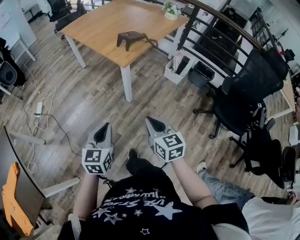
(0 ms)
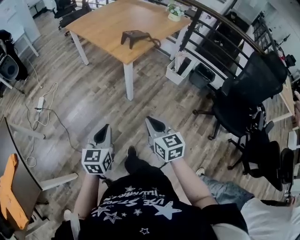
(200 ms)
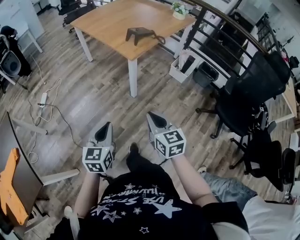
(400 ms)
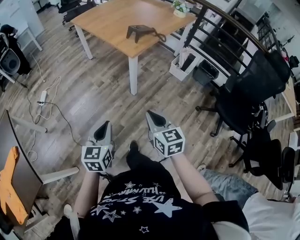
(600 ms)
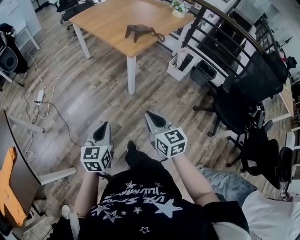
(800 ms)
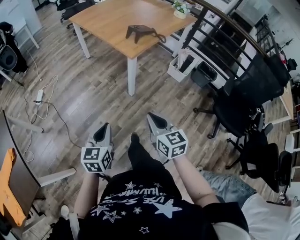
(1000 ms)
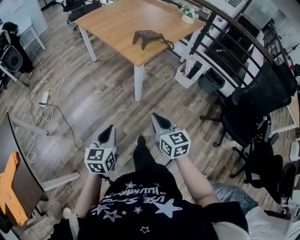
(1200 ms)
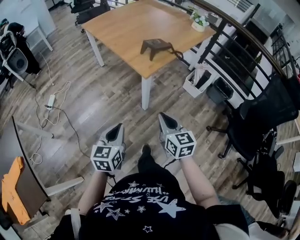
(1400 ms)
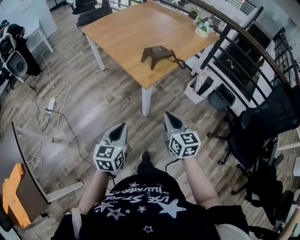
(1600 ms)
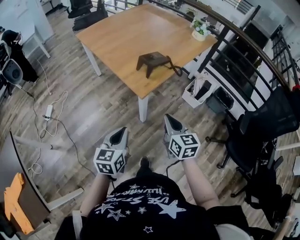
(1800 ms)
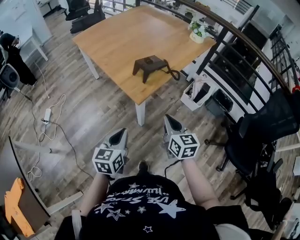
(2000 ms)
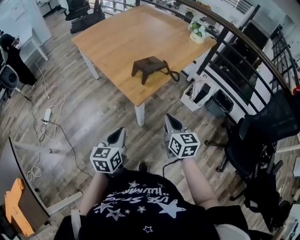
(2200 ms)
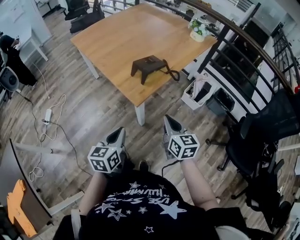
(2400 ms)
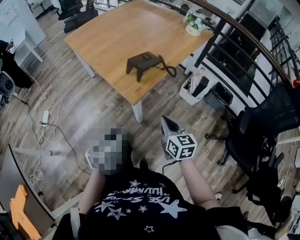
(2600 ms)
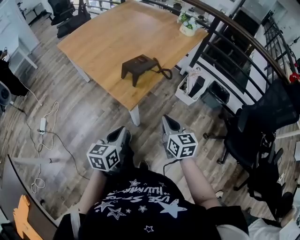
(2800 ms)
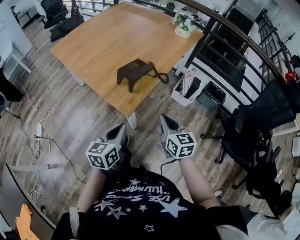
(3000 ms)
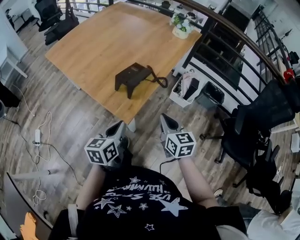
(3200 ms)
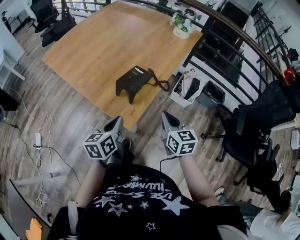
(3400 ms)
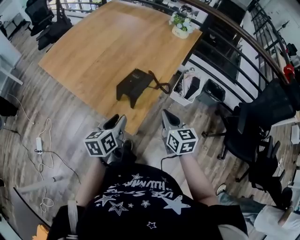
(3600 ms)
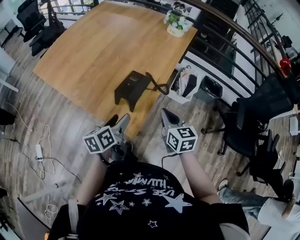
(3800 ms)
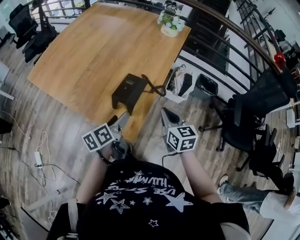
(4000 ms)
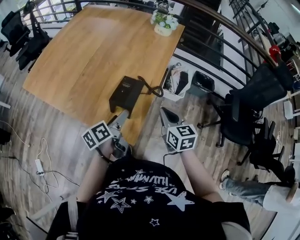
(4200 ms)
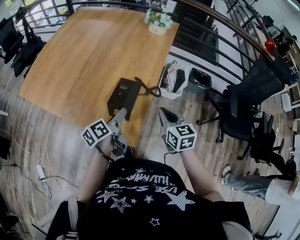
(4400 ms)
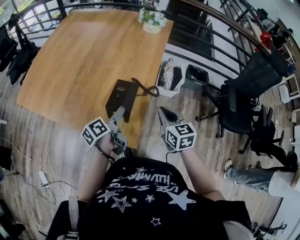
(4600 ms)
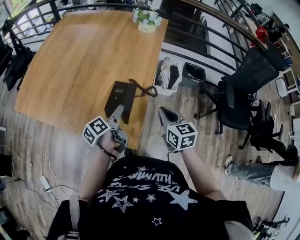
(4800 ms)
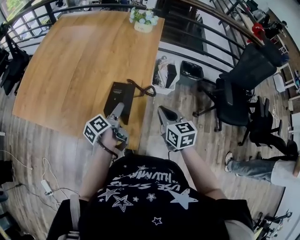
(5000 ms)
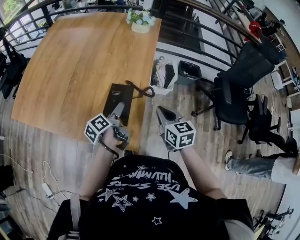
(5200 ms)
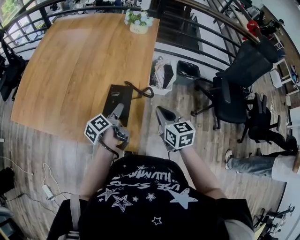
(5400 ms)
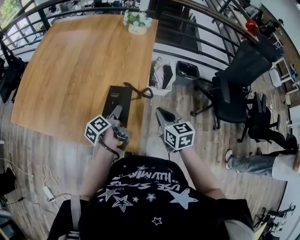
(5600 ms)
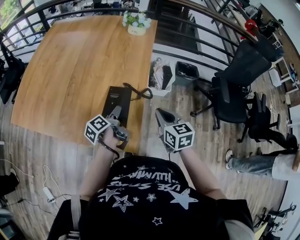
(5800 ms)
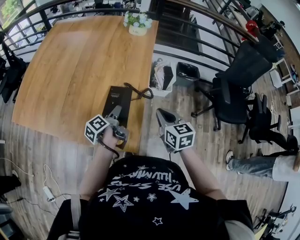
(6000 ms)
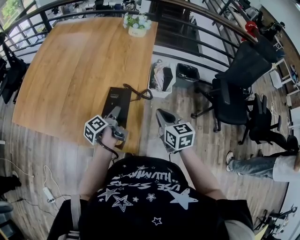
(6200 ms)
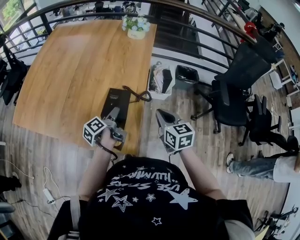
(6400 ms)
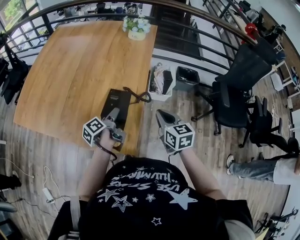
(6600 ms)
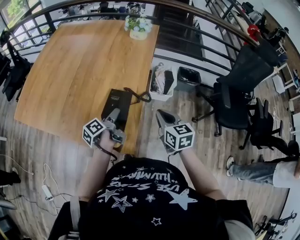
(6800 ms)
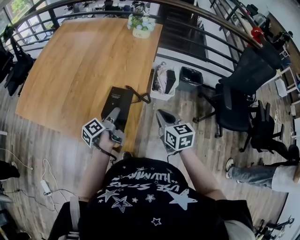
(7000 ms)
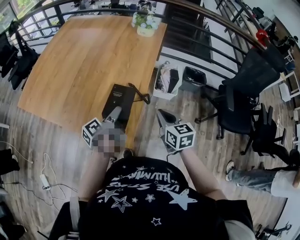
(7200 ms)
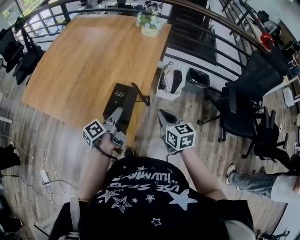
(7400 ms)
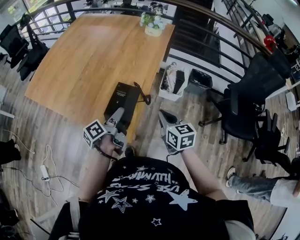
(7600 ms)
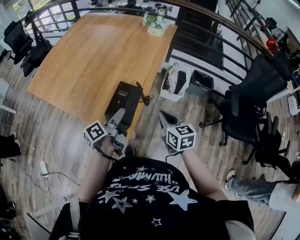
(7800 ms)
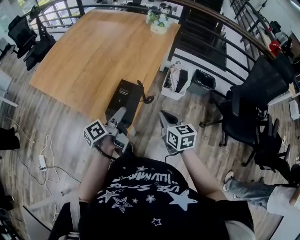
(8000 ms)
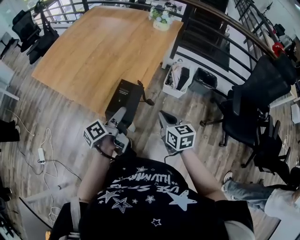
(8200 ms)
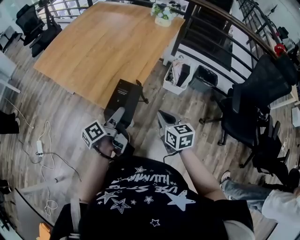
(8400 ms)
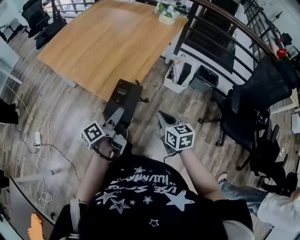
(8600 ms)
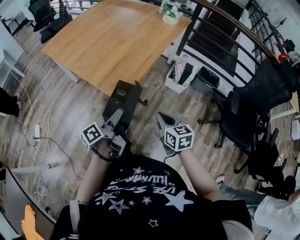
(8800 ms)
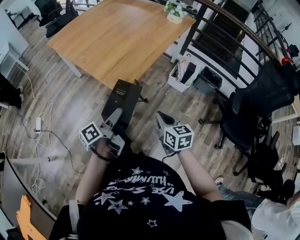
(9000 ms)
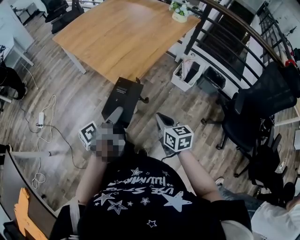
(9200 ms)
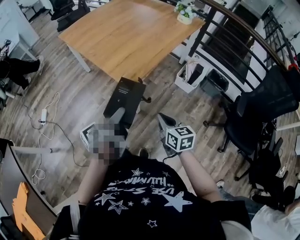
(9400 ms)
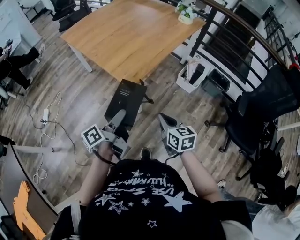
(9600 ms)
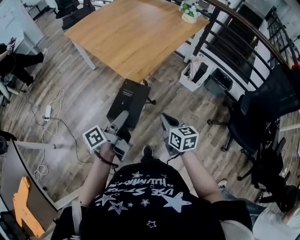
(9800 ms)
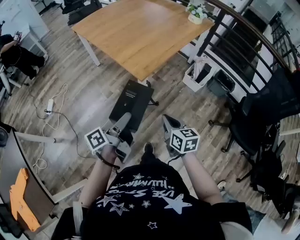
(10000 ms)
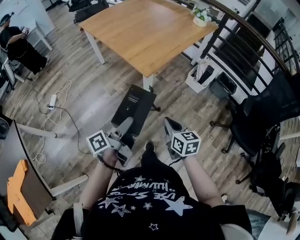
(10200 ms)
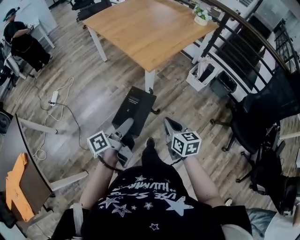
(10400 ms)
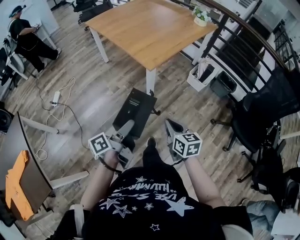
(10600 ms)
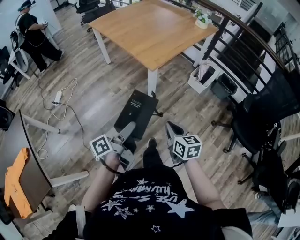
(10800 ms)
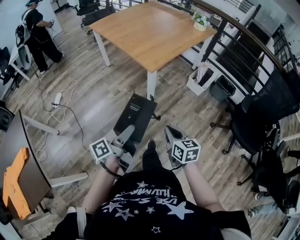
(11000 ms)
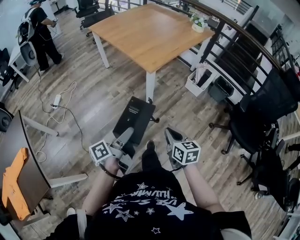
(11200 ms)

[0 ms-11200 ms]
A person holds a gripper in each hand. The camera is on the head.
0 ms to 1600 ms: The grippers both shift forward by about 20 cm.
1600 ms to 3200 ms: Both grippers travel together forward, approximately 25 cm. The left gripper swivels about 20 degrees.
3200 ms to 4800 ms: The right gripper goes some 10 cm forward, while the left gripper goes approximately 20 cm forward, twists approximately 40 degrees counterclockwise, seen from behind, and opens its fingers.
4800 ms to 6400 ms: The left gripper closes.
6400 ms to 8000 ms: The left gripper travels backward and upward by roughly 15 cm, while the right gripper goes approximately 5 cm backward.
8000 ms to 9600 ms: Both grippers move backward, approximately 25 cm.
9600 ms to 11200 ms: The two grippers go about 25 cm backward.

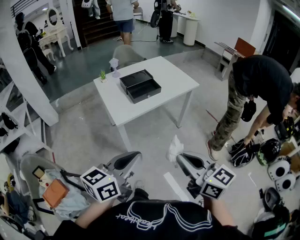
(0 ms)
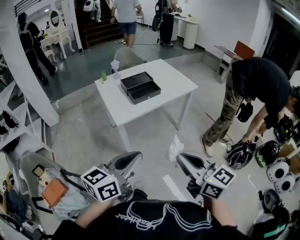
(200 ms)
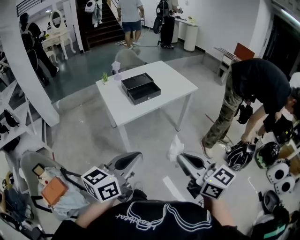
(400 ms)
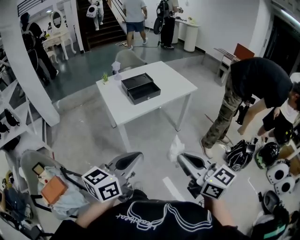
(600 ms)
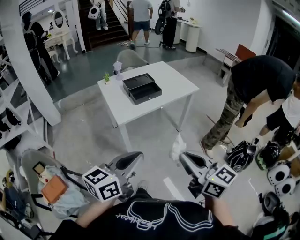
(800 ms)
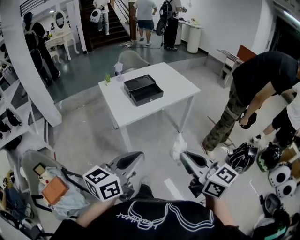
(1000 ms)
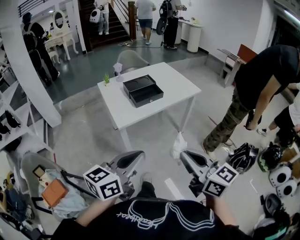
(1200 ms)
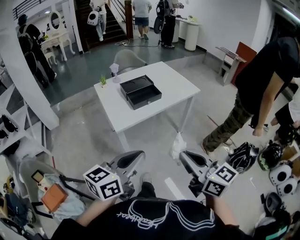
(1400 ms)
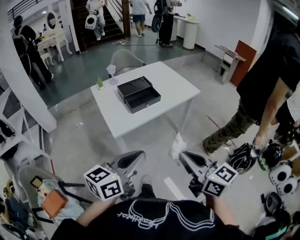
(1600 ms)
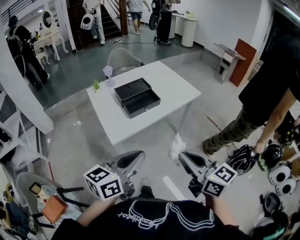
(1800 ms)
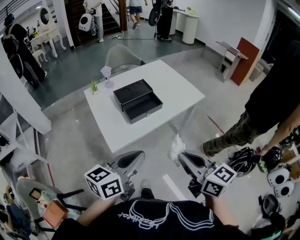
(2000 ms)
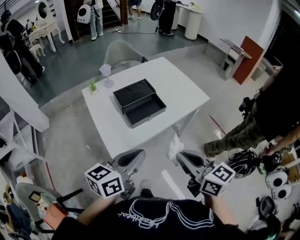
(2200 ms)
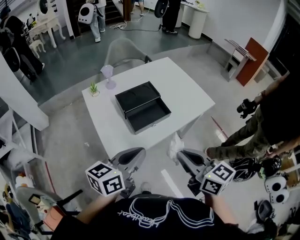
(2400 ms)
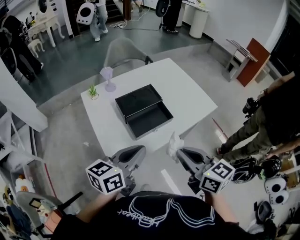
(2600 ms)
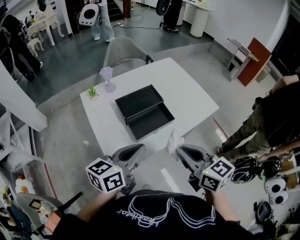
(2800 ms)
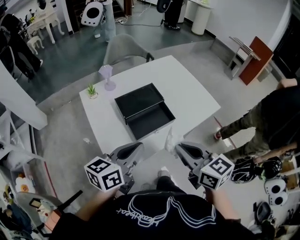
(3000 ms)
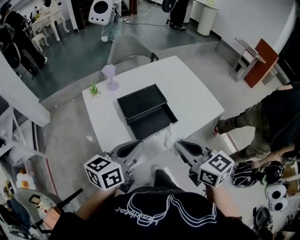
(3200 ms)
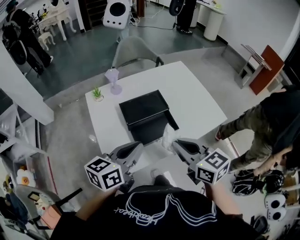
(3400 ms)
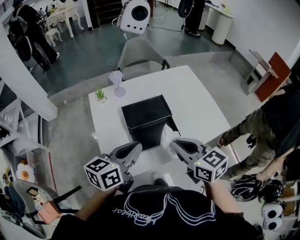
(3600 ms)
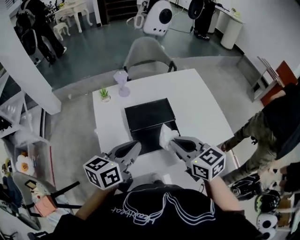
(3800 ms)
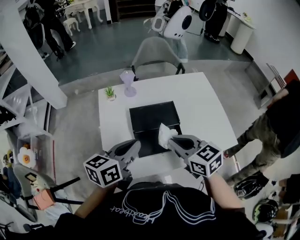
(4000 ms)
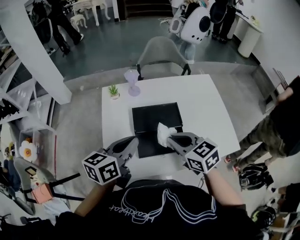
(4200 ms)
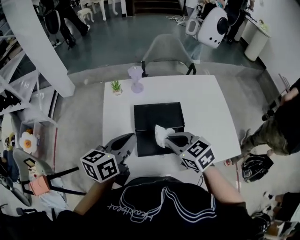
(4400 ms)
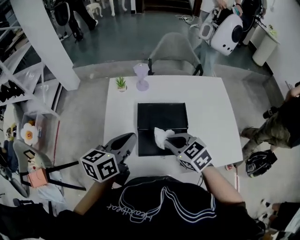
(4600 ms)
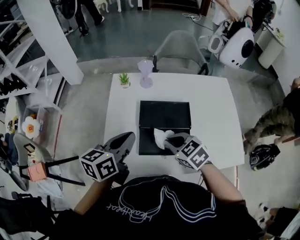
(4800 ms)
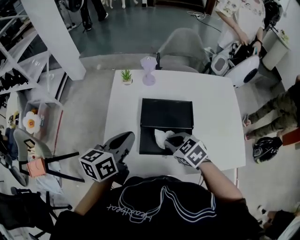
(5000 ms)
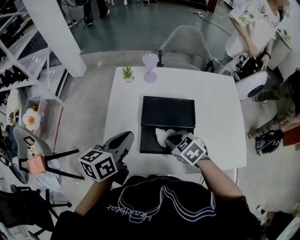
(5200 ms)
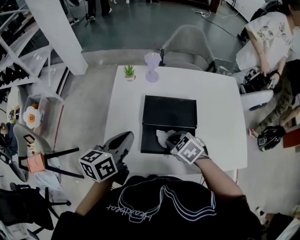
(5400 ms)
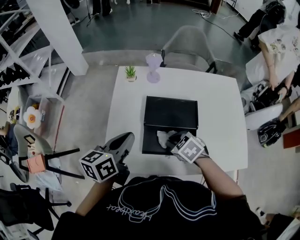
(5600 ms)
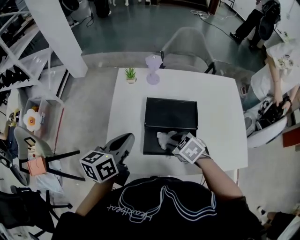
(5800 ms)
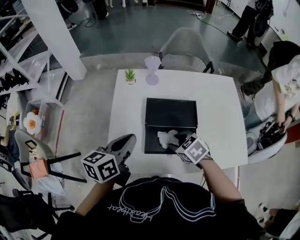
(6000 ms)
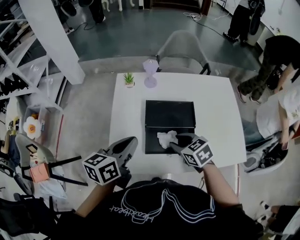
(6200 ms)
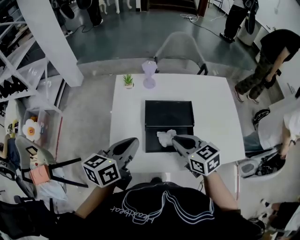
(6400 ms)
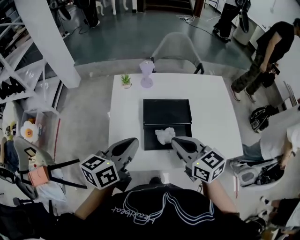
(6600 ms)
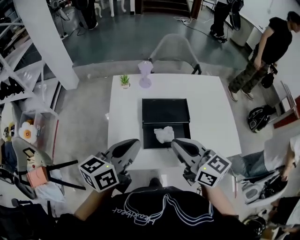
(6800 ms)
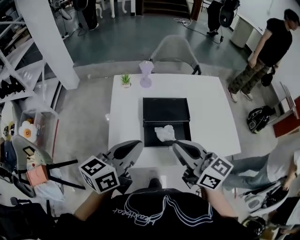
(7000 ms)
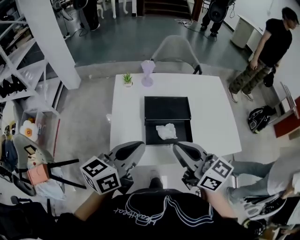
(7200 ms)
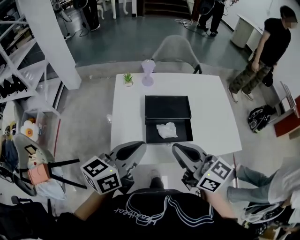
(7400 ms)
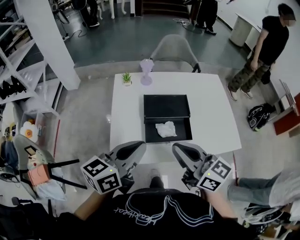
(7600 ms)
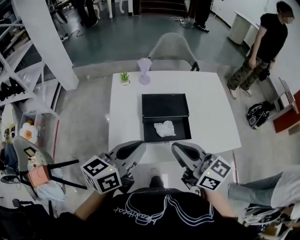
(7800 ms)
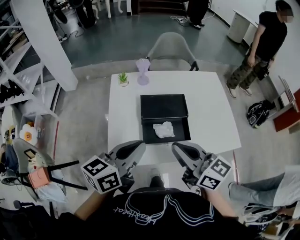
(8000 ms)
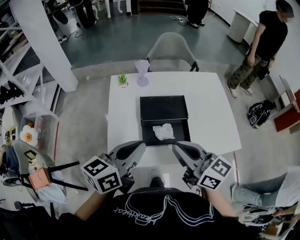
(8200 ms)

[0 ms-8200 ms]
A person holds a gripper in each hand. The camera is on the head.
0 ms to 1600 ms: Both grippers travel together forward, about 5 cm.
1600 ms to 3200 ms: Both grippers travel together forward, roughly 35 cm.
3200 ms to 5000 ms: The right gripper is displaced downward by roughly 20 cm, and angles its fingers downward, by approximately 30 degrees. Meanwhile the left gripper shifts by about 15 cm, and rotates some 40 degrees.
5000 ms to 6600 ms: The left gripper changes place by roughly 5 cm, while the right gripper heads upward, covering approximately 15 cm, angles its fingers upward, by about 30 degrees, and opens and closes again.
6600 ms to 8200 ms: The left gripper changes place by some 5 cm. The right gripper shifts some 10 cm backward and upward.

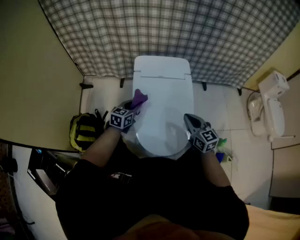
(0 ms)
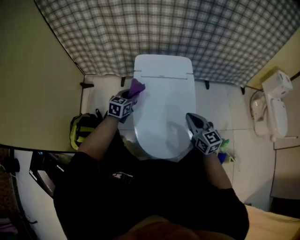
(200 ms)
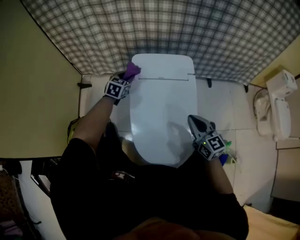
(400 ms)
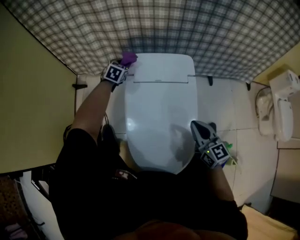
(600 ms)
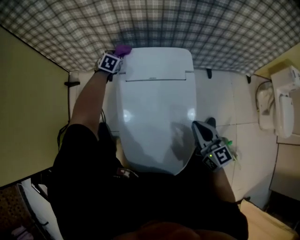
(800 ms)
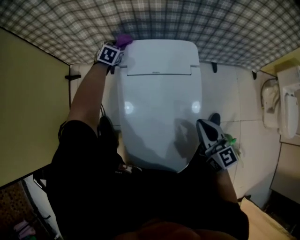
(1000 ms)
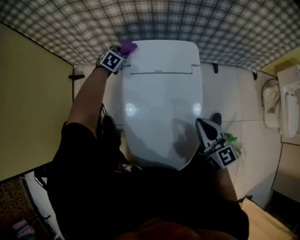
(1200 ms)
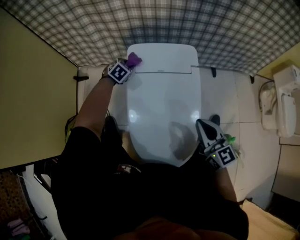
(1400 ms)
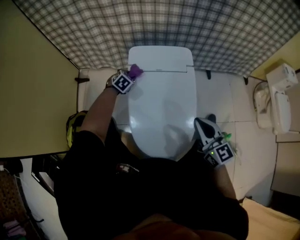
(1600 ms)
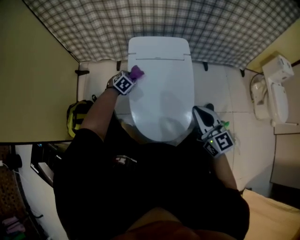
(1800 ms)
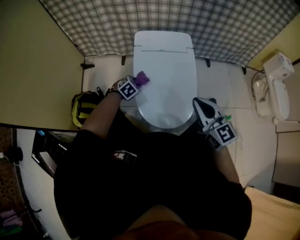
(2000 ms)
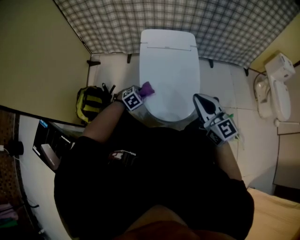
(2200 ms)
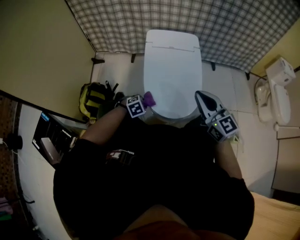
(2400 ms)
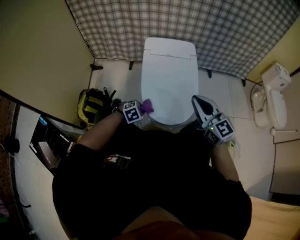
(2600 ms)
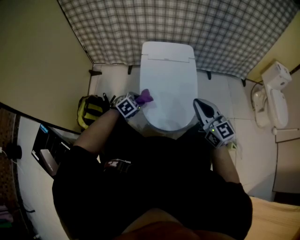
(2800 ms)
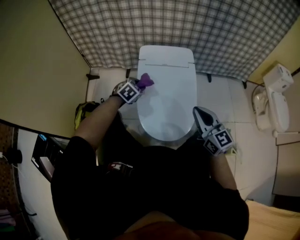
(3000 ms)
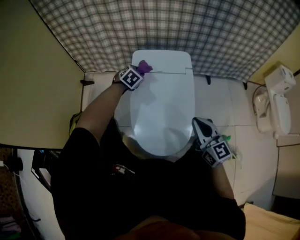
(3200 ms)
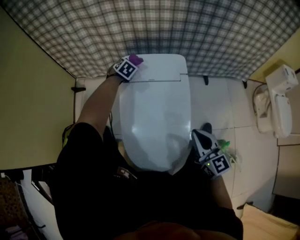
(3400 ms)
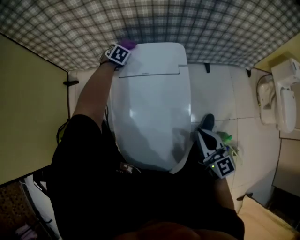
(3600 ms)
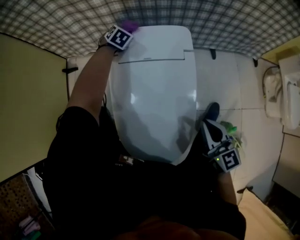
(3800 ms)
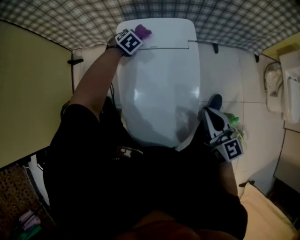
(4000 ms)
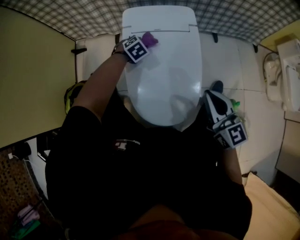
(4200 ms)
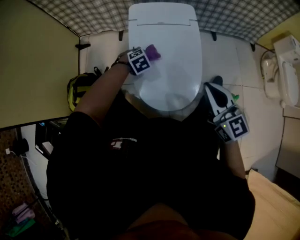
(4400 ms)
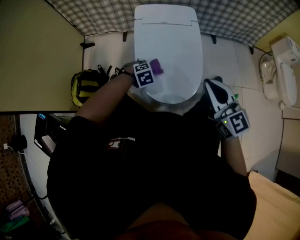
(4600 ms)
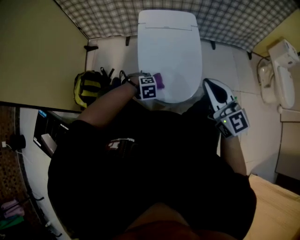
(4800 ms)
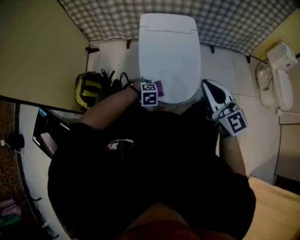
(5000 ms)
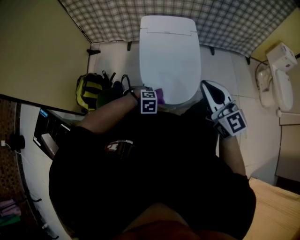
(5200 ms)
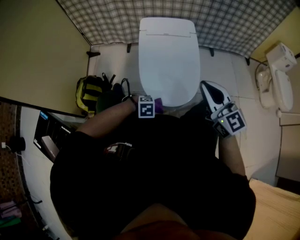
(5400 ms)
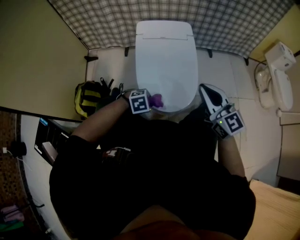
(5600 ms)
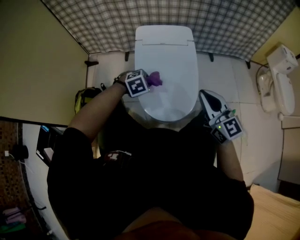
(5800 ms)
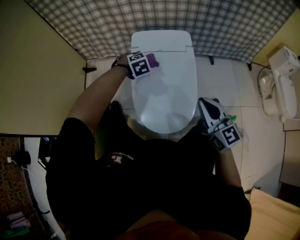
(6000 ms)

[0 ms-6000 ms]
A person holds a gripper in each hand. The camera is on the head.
0 ms to 1600 ms: The left gripper goes approximately 20 cm forward, and angles its fingers downward, by approximately 30 degrees. The right gripper travels upward by some 10 cm, and moves about 10 cm forward and comes back.
1600 ms to 3000 ms: The right gripper heads backward, covering approximately 10 cm. Meanwhile the left gripper shifts approximately 20 cm backward and upward.
3000 ms to 4400 ms: The left gripper goes roughly 10 cm downward, goes forward and returns, about 40 cm each way, and changes its angle by some 20 degrees. The right gripper reaches approximately 15 cm forward, then returns.
4400 ms to 6000 ms: The left gripper heads upward, covering roughly 10 cm.
